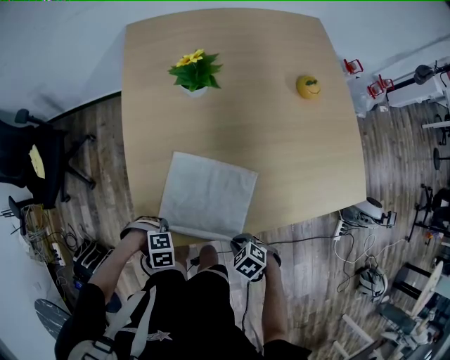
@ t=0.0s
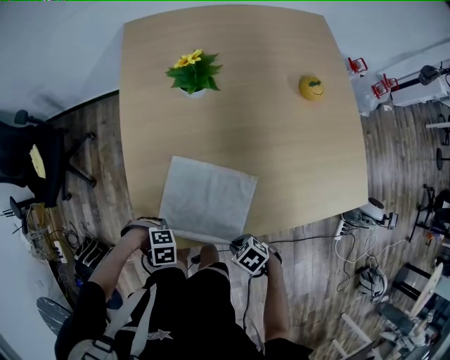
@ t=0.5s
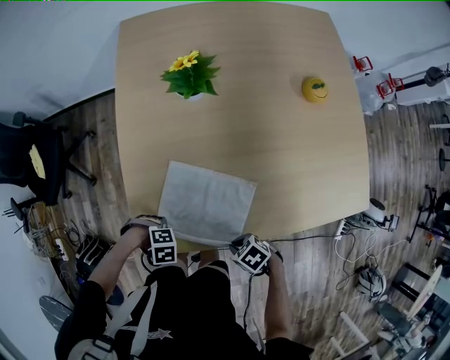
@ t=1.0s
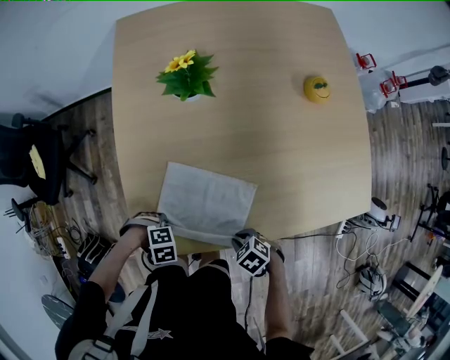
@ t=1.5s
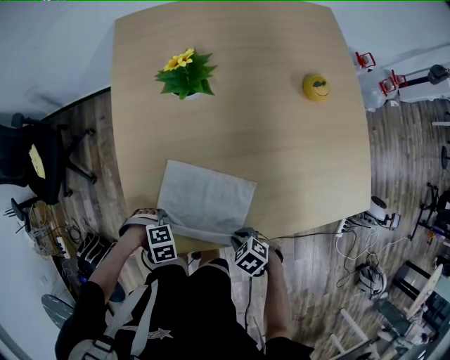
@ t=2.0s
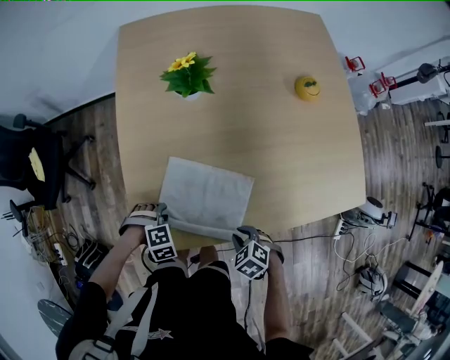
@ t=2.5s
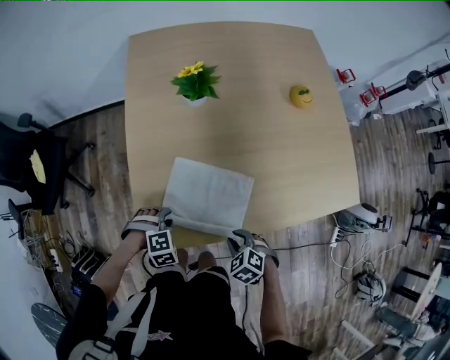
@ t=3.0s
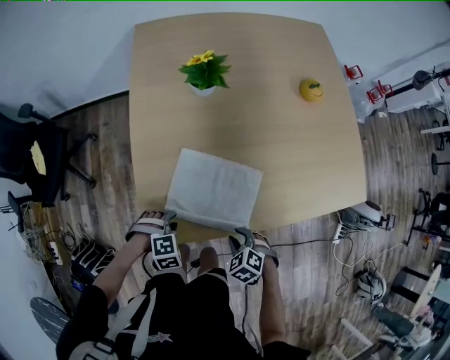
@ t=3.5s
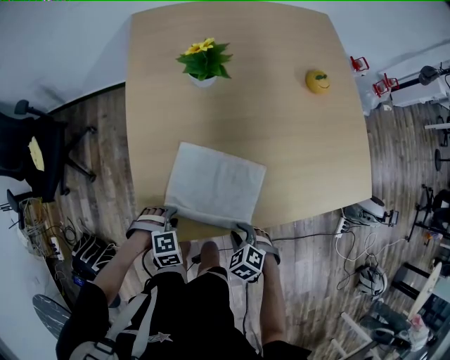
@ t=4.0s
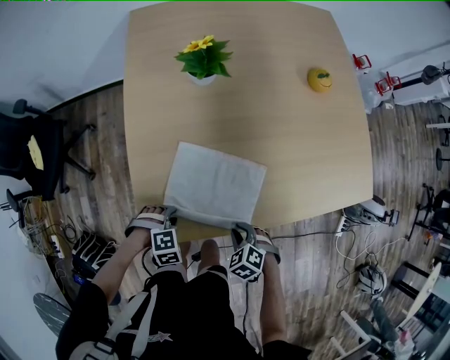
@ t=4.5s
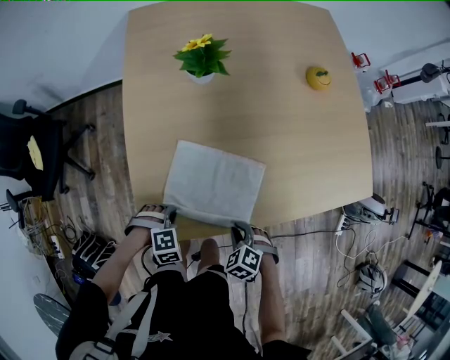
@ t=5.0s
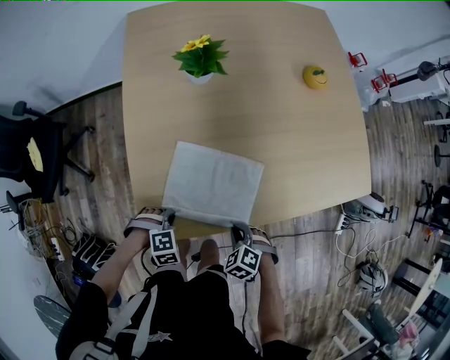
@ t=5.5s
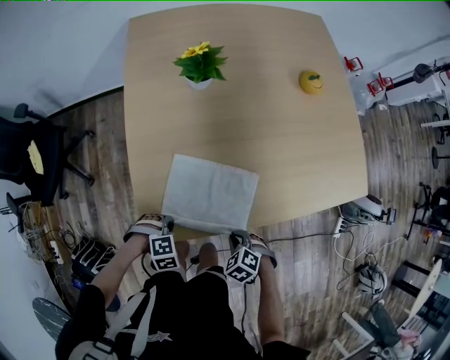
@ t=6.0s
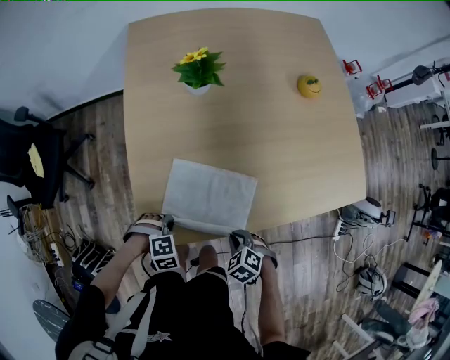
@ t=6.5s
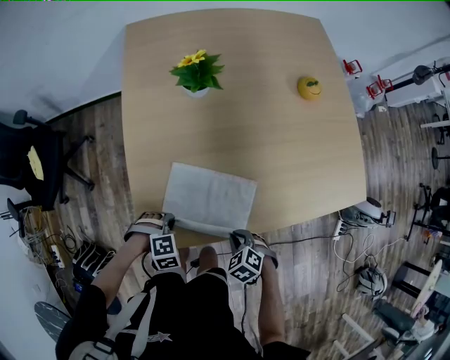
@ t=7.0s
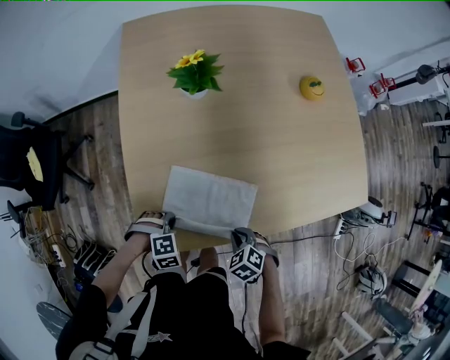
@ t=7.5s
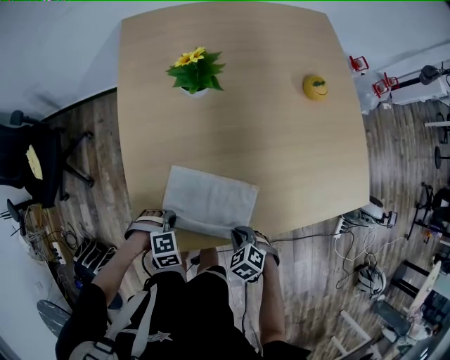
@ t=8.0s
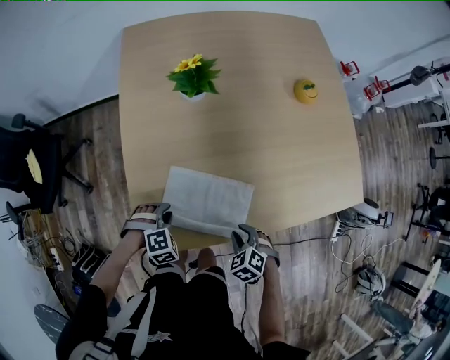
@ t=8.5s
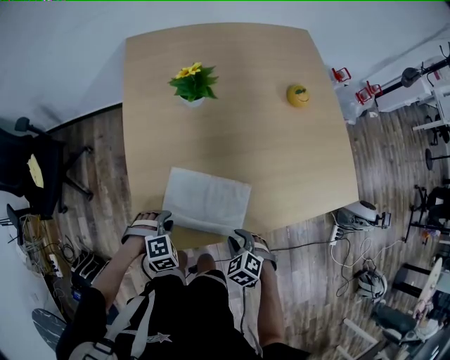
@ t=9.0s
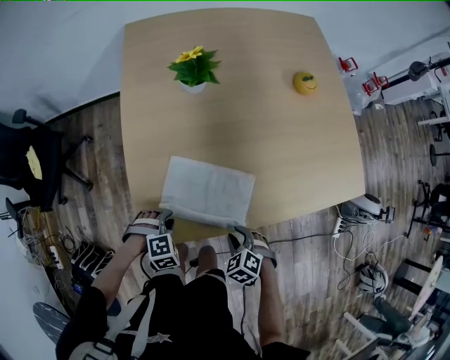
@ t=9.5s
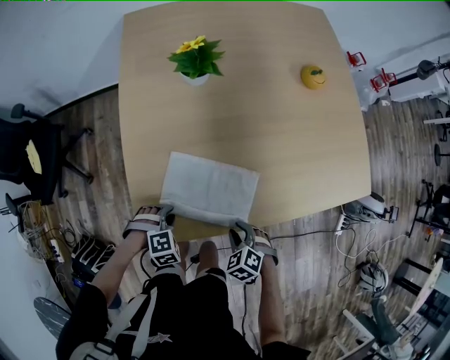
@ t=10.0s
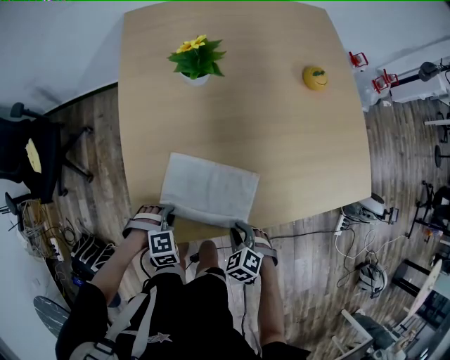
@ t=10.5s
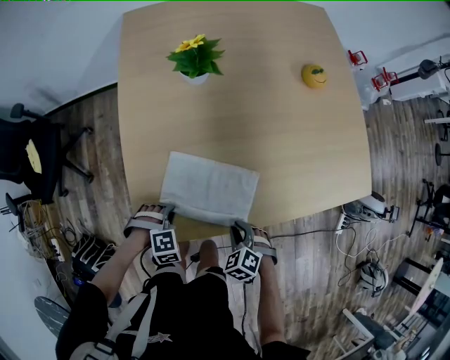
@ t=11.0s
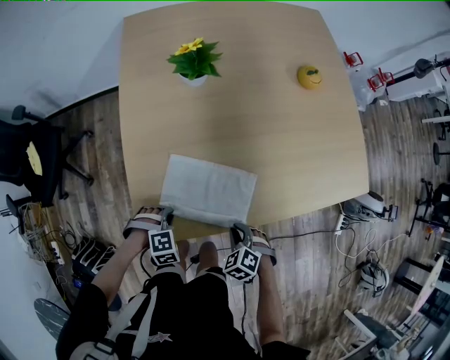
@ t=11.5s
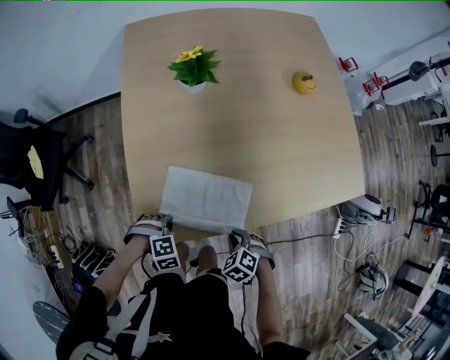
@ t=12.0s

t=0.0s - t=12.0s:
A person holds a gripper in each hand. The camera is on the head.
t=0.0s - t=2.0s: The right gripper shifts by some 5 cm.
t=2.0s - t=4.0s: The right gripper rotates about 20 degrees.
t=4.0s - t=6.0s: The right gripper closes up.
t=6.0s - t=8.0s: The right gripper ends up approximately 5 cm from where it was.

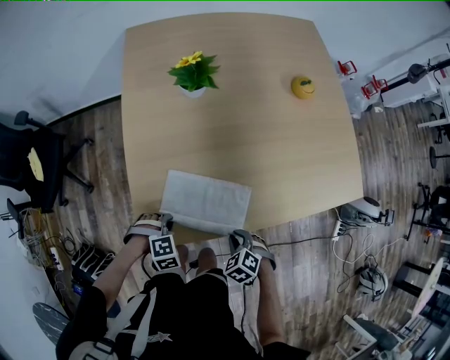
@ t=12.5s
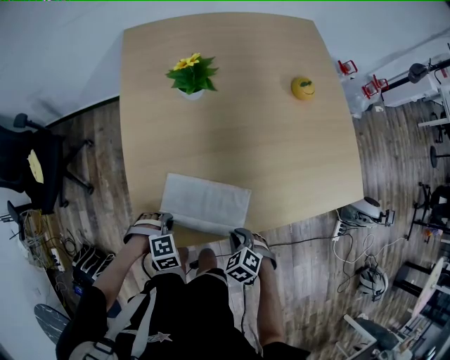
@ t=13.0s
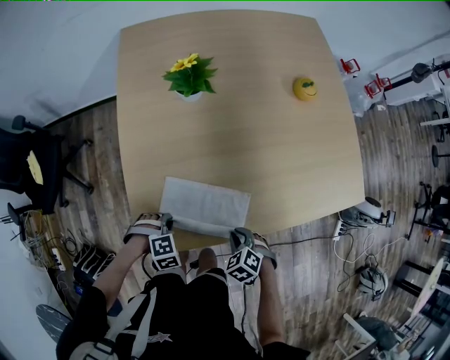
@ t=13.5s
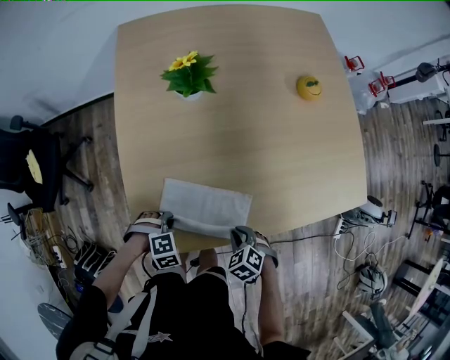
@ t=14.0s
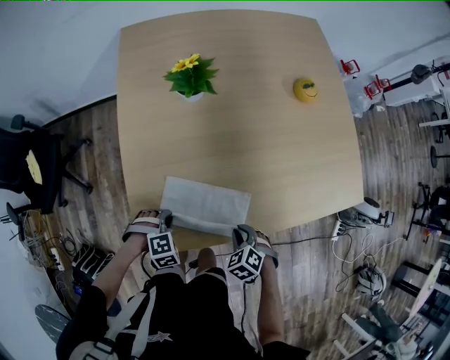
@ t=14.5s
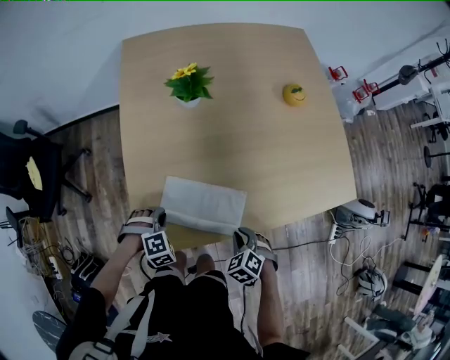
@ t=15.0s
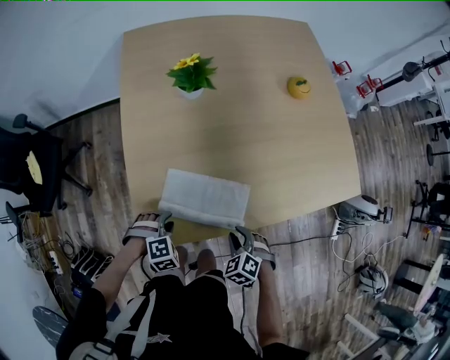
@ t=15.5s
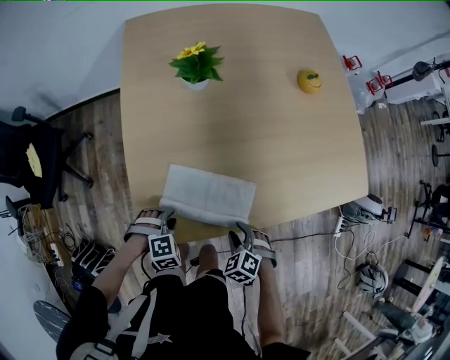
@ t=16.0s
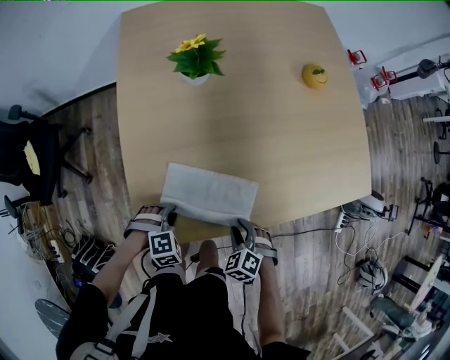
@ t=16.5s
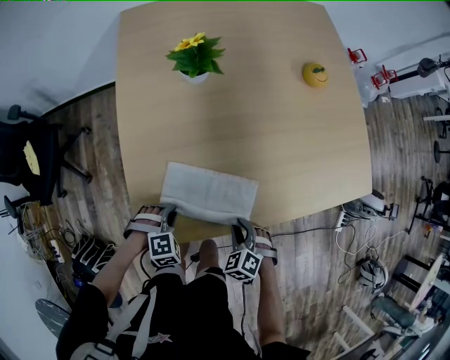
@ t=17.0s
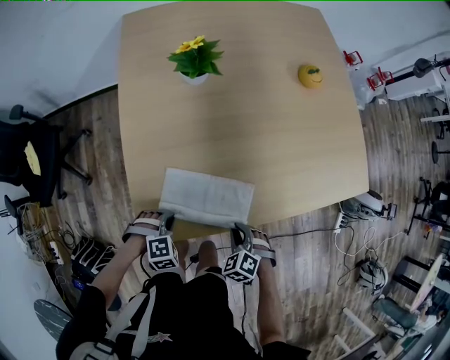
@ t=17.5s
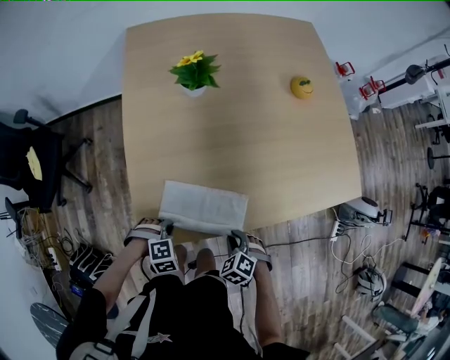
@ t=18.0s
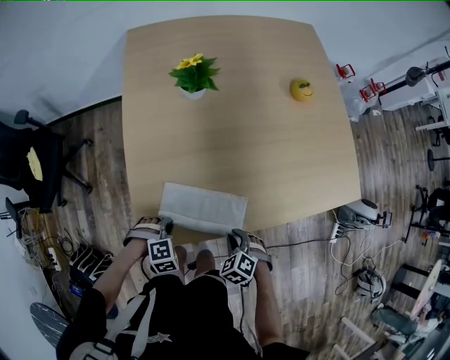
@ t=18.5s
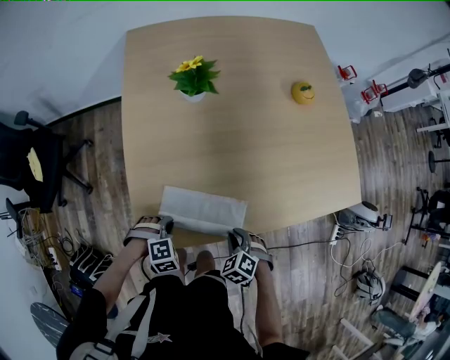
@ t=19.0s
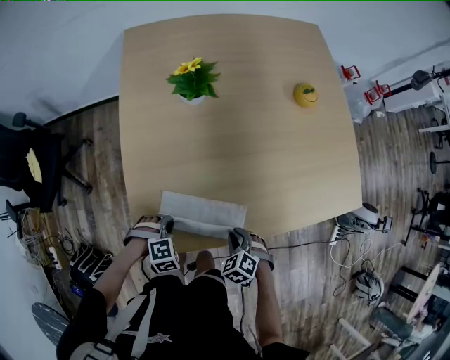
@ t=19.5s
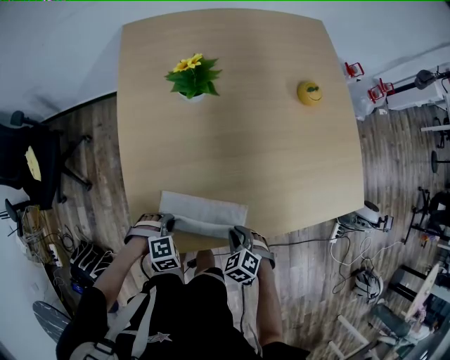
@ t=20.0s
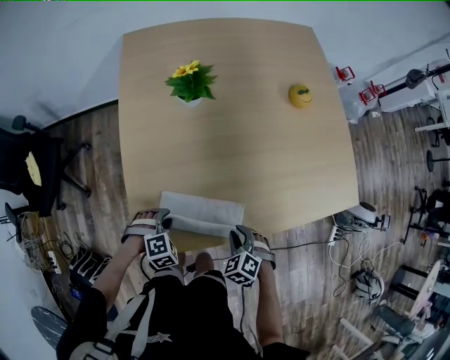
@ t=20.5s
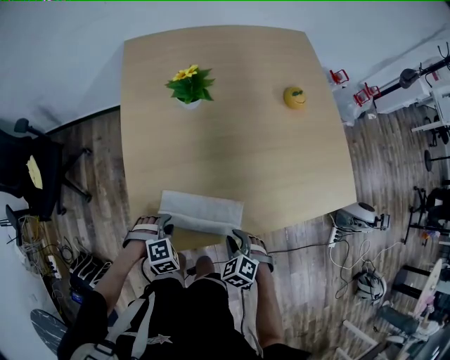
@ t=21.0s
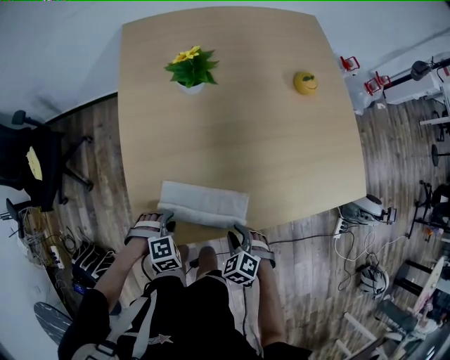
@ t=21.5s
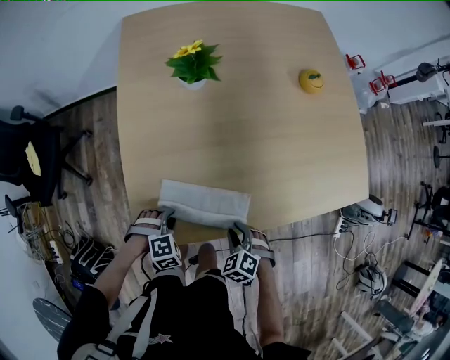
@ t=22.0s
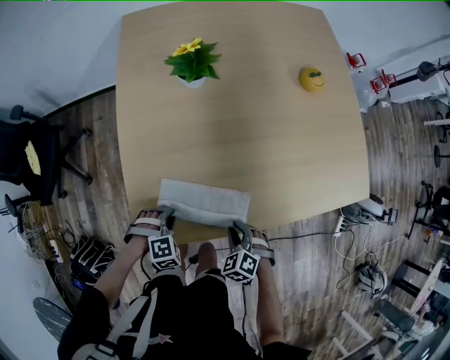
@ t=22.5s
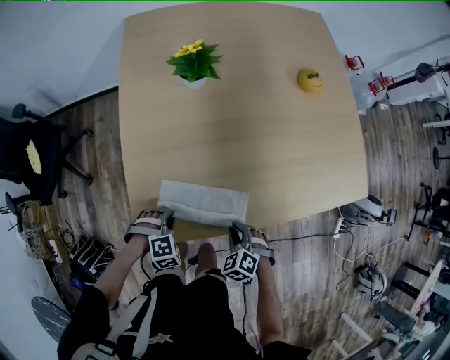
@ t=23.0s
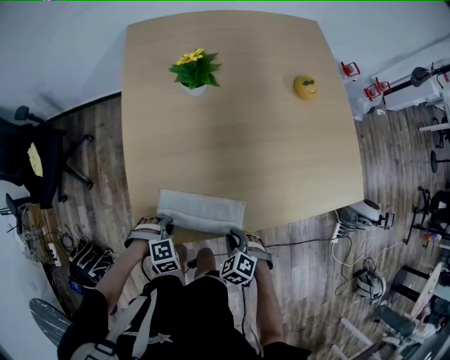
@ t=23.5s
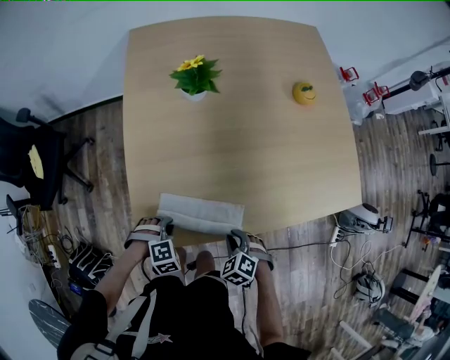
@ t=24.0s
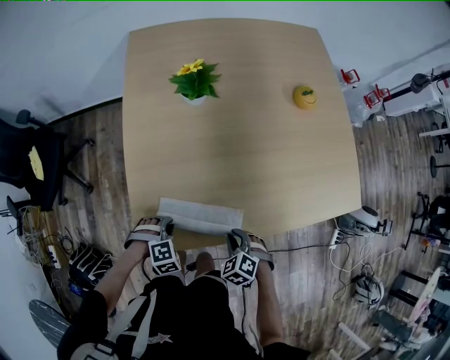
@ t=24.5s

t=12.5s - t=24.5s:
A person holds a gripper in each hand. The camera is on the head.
t=12.5s - t=14.5s: The right gripper ends up some 5 cm from where it was.
t=18.5s - t=20.5s: The right gripper ends up about 5 cm from where it was.

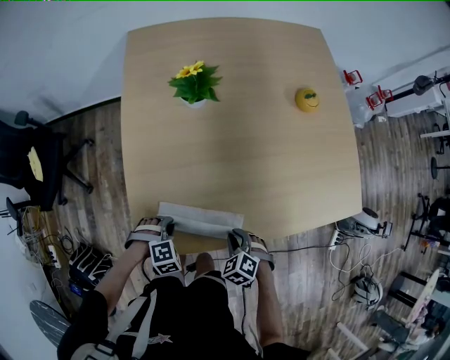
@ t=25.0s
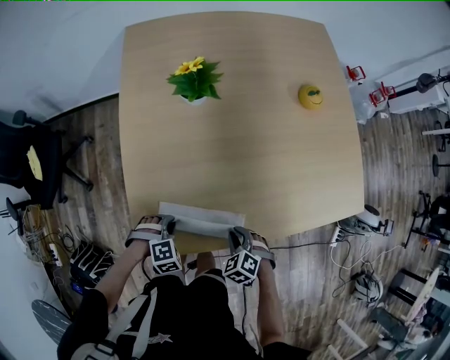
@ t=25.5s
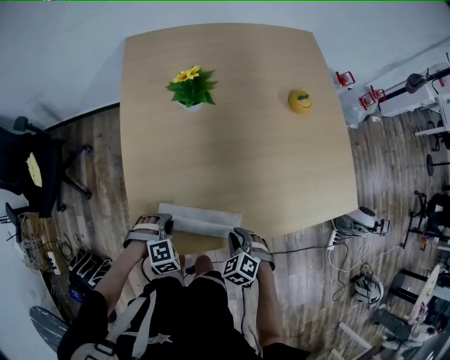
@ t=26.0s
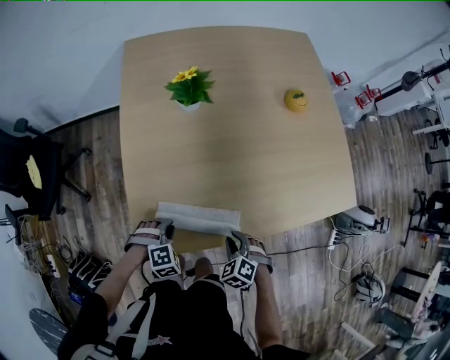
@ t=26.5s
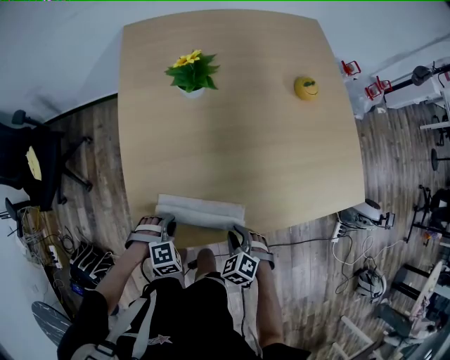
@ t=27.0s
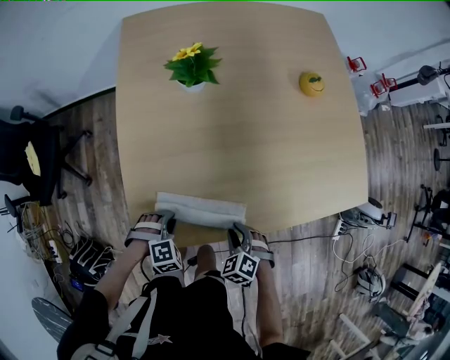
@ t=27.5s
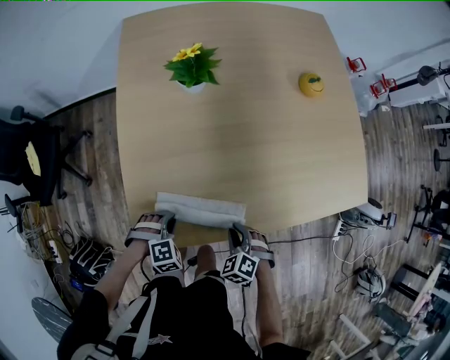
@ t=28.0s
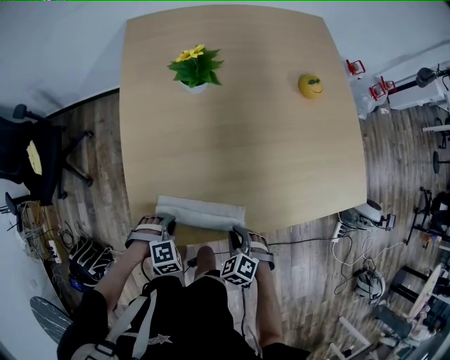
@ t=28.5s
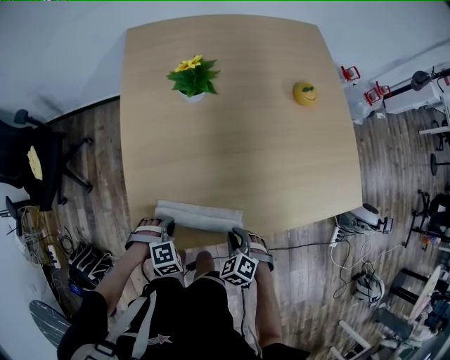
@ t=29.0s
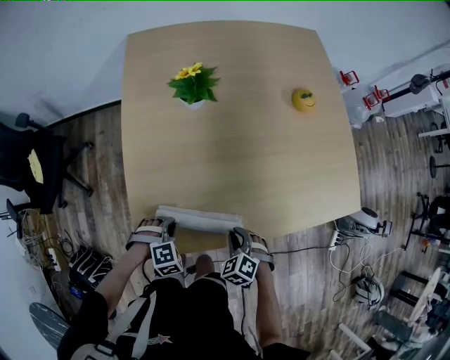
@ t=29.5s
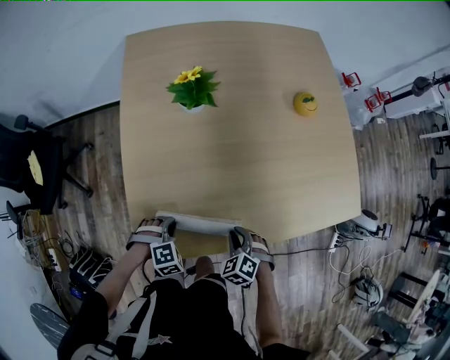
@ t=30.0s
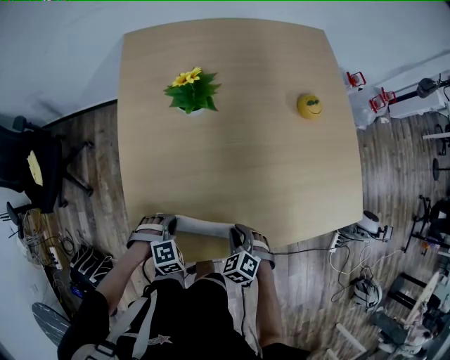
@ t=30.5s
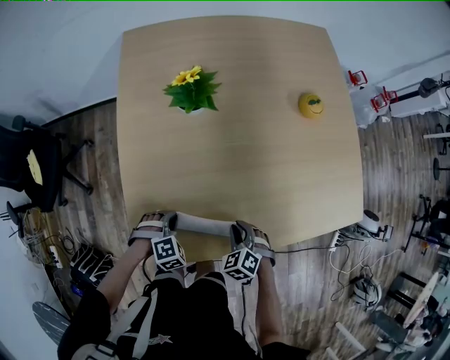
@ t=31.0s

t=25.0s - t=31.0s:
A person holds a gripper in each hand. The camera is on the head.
t=29.0s - t=31.0s: The right gripper ends up approximately 10 cm from where it was.
